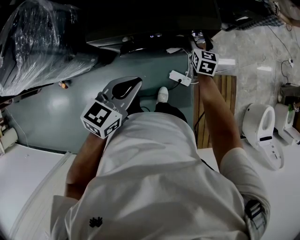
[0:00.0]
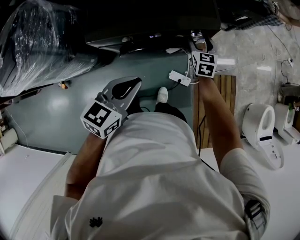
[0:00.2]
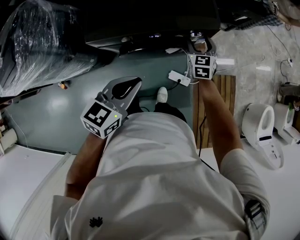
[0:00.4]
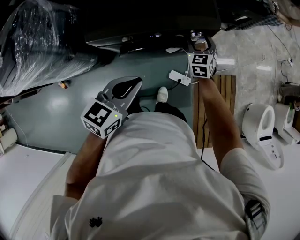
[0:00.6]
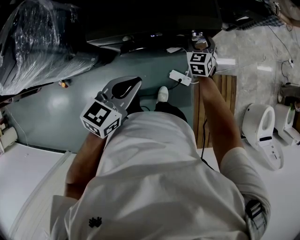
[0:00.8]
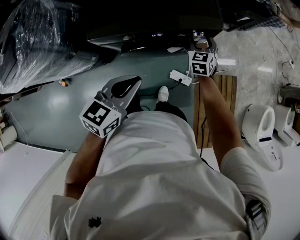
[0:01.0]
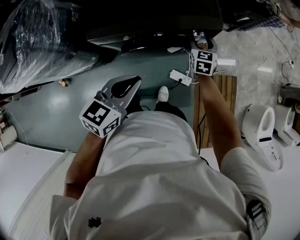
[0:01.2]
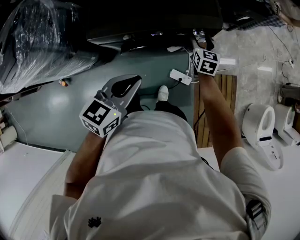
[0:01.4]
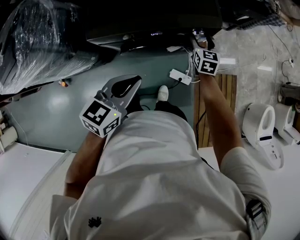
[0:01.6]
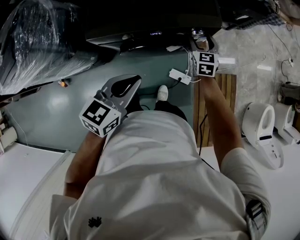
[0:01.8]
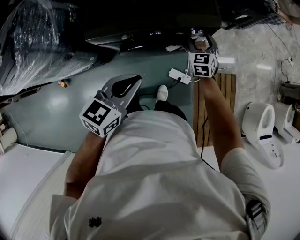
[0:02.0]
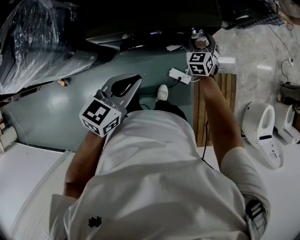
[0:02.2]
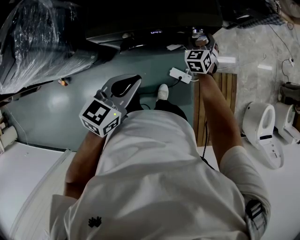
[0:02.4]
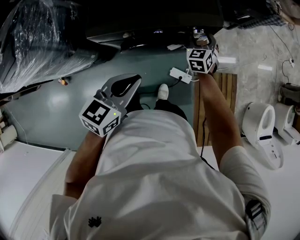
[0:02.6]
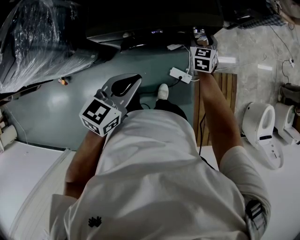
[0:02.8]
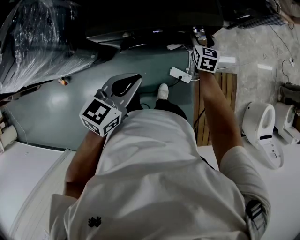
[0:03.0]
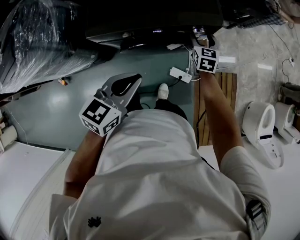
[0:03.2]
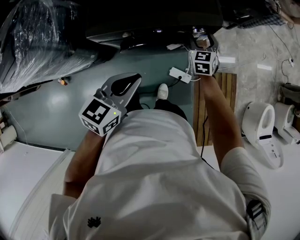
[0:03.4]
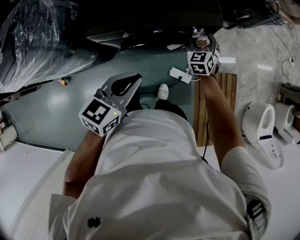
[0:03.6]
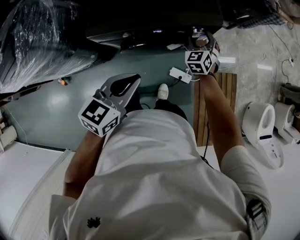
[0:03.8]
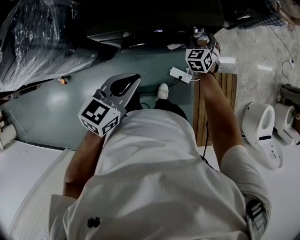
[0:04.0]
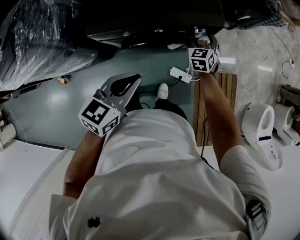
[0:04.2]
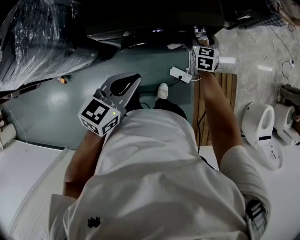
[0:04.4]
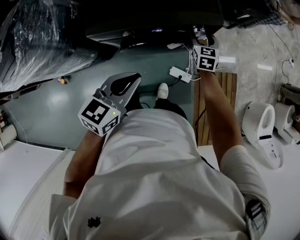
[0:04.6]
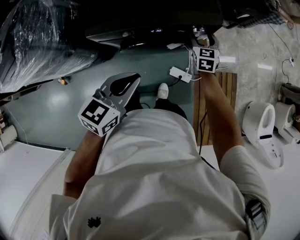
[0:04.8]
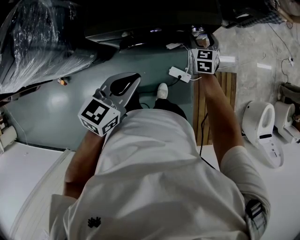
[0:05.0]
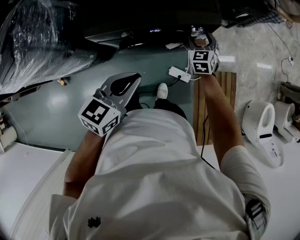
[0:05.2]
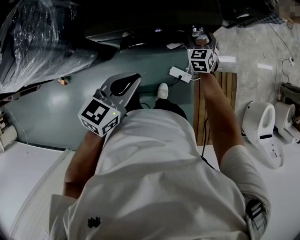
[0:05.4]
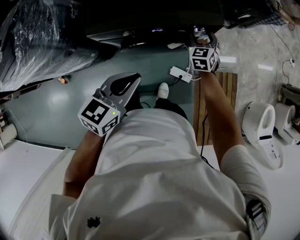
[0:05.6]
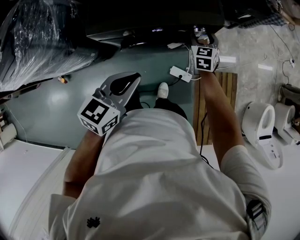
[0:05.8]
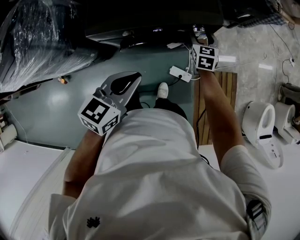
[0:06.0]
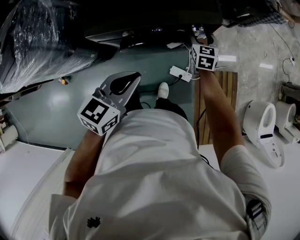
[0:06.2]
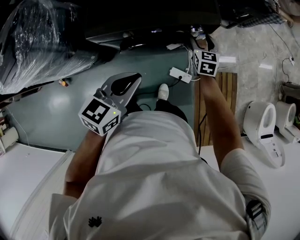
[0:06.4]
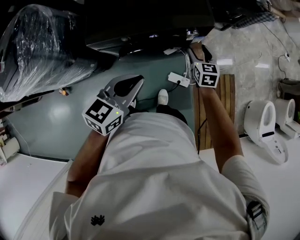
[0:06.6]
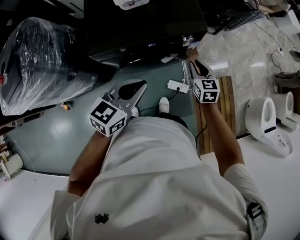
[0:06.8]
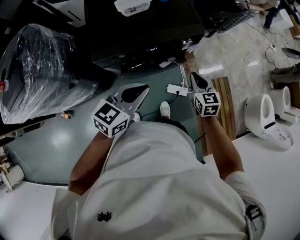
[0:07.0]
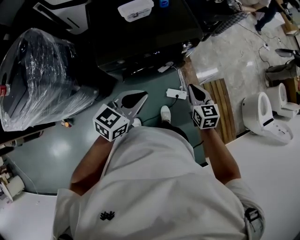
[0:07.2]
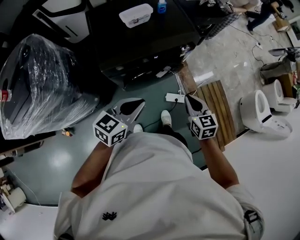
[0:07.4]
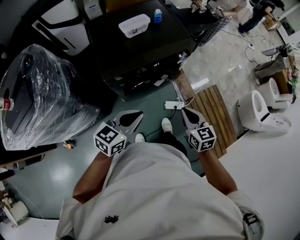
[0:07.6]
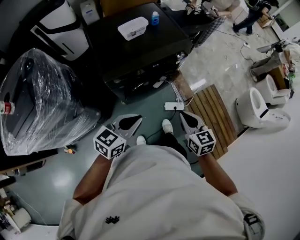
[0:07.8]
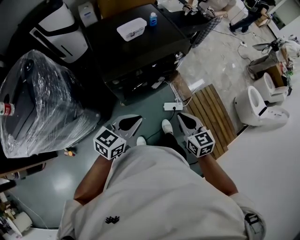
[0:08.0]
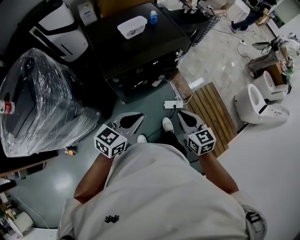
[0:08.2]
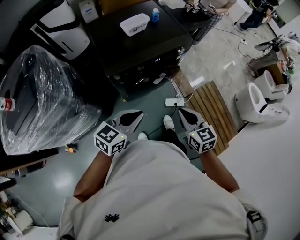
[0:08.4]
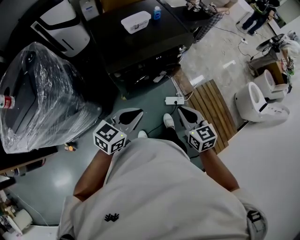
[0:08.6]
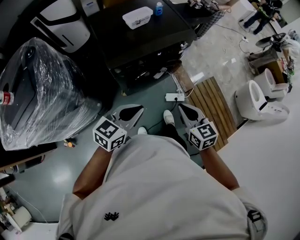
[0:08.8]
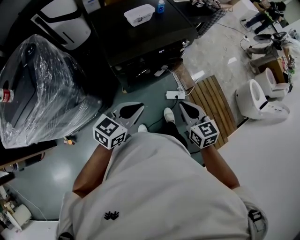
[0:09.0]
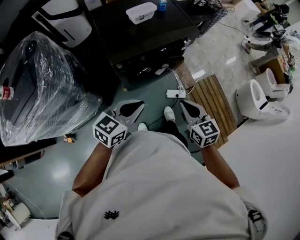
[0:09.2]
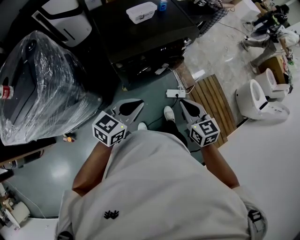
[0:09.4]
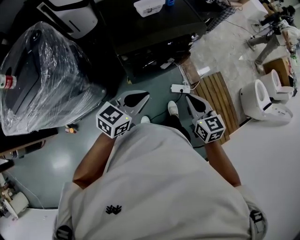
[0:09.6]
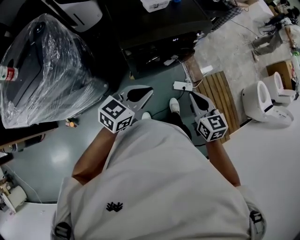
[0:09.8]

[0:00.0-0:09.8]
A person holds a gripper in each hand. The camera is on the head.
0:04.2 to 0:05.6: The grippers stay close to where they were, moving slightly.
0:05.6 to 0:07.0: The right gripper heads backward and upward, covering about 20 cm, swivels roughly 20 degrees, and closes up.
0:07.0 to 0:08.4: The right gripper heads backward, covering roughly 25 cm. Meanwhile the left gripper moves backward and to the left, about 15 cm.
0:08.4 to 0:09.8: There are only small adjustments of the grippers.

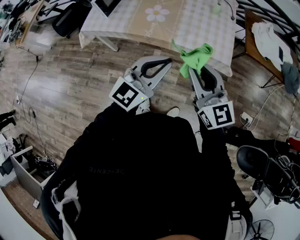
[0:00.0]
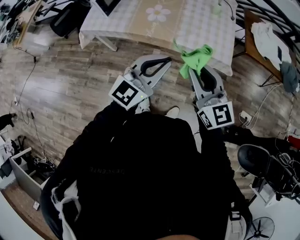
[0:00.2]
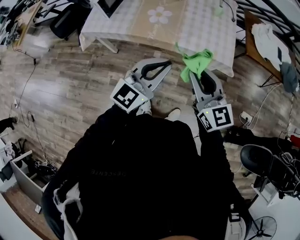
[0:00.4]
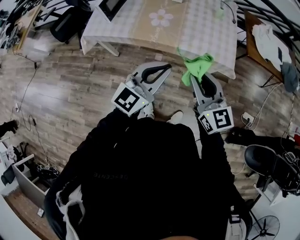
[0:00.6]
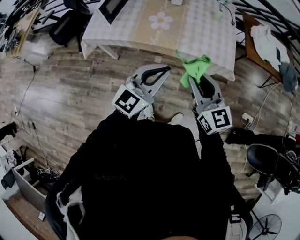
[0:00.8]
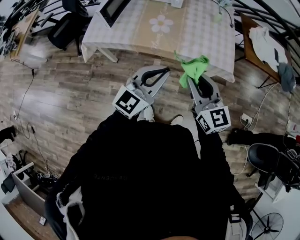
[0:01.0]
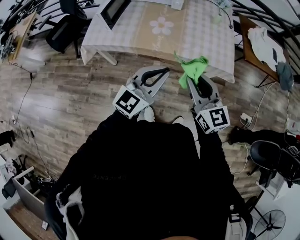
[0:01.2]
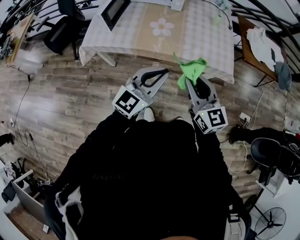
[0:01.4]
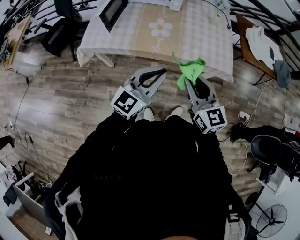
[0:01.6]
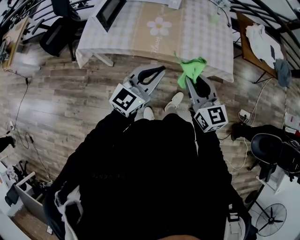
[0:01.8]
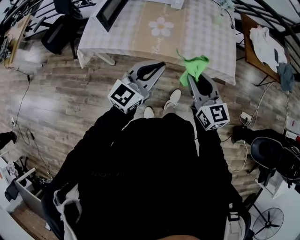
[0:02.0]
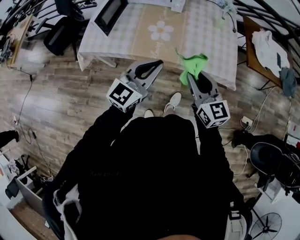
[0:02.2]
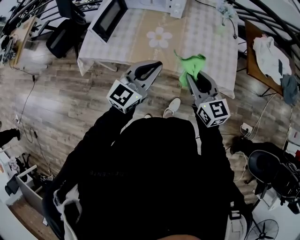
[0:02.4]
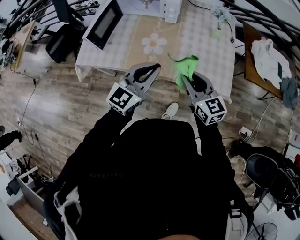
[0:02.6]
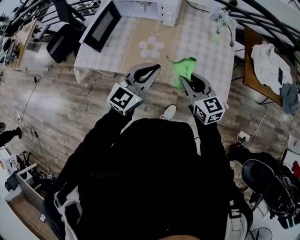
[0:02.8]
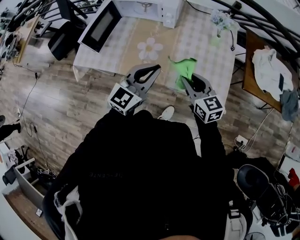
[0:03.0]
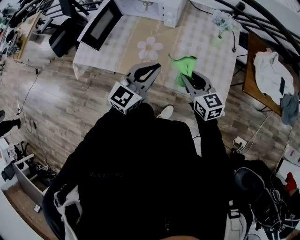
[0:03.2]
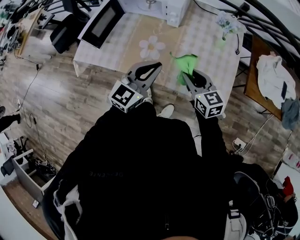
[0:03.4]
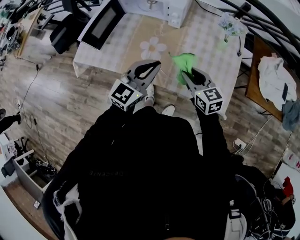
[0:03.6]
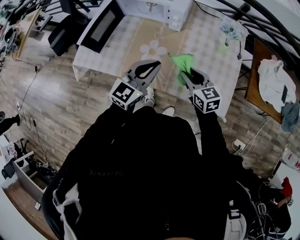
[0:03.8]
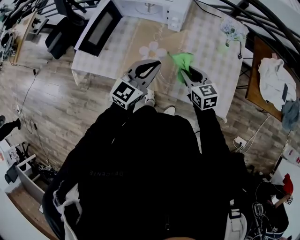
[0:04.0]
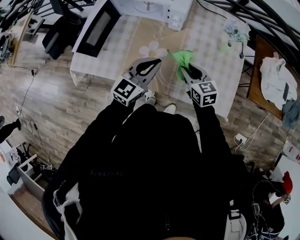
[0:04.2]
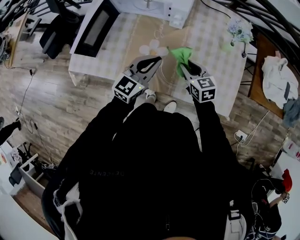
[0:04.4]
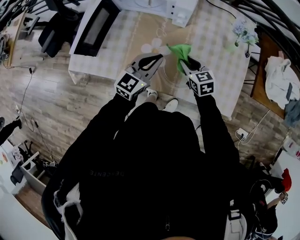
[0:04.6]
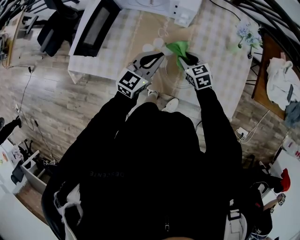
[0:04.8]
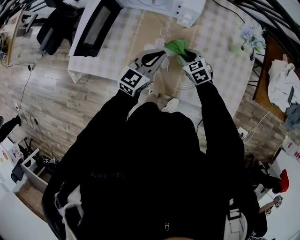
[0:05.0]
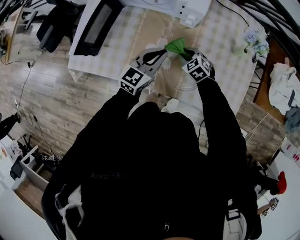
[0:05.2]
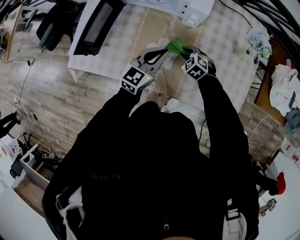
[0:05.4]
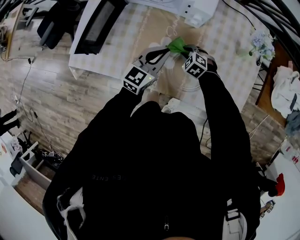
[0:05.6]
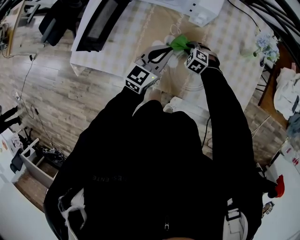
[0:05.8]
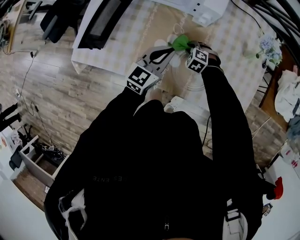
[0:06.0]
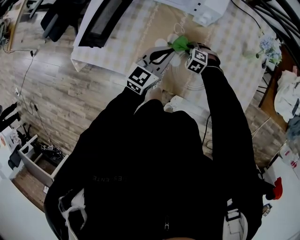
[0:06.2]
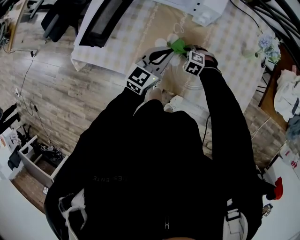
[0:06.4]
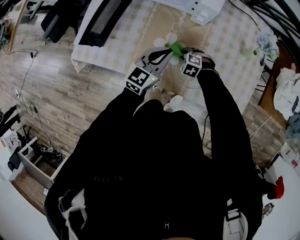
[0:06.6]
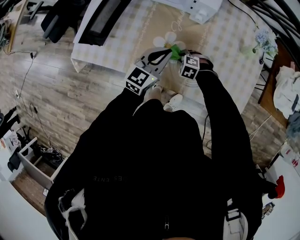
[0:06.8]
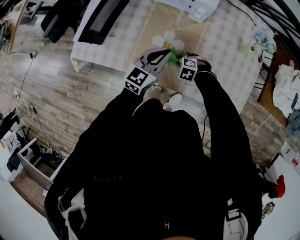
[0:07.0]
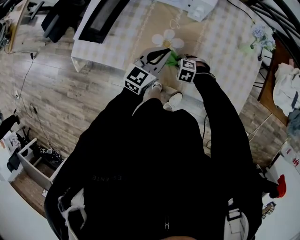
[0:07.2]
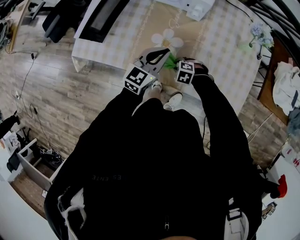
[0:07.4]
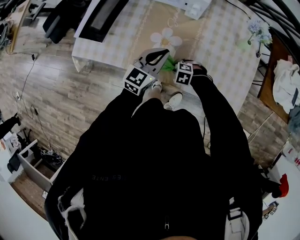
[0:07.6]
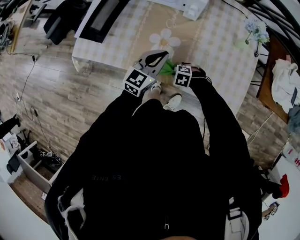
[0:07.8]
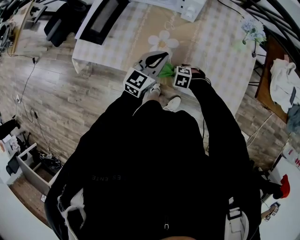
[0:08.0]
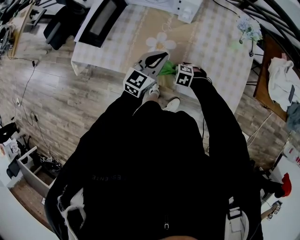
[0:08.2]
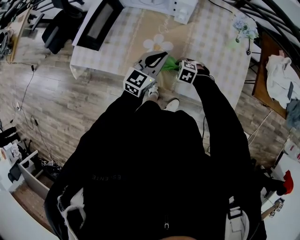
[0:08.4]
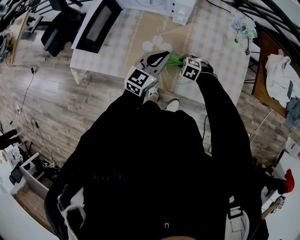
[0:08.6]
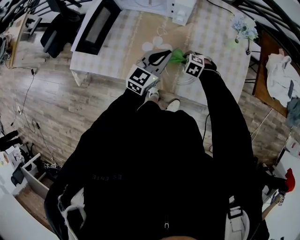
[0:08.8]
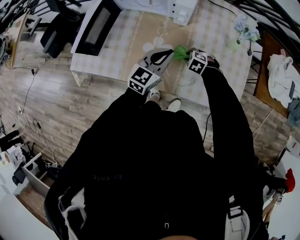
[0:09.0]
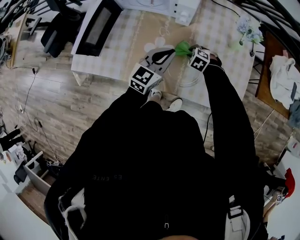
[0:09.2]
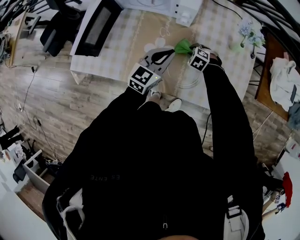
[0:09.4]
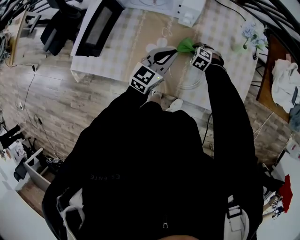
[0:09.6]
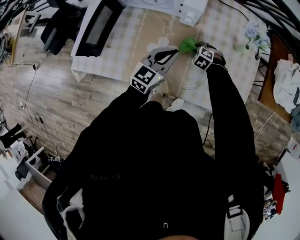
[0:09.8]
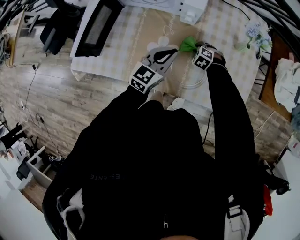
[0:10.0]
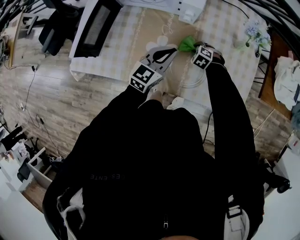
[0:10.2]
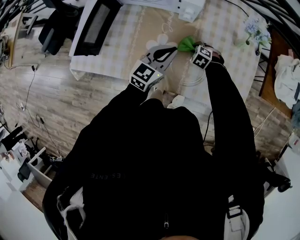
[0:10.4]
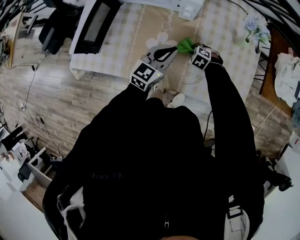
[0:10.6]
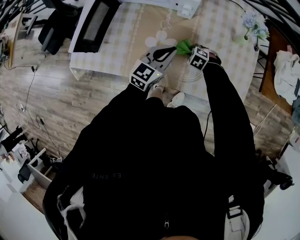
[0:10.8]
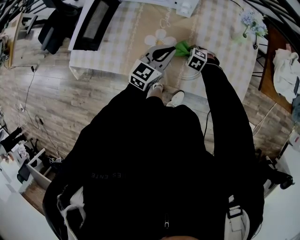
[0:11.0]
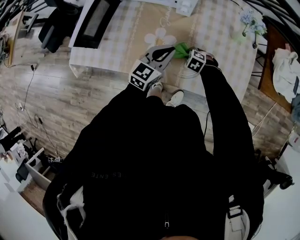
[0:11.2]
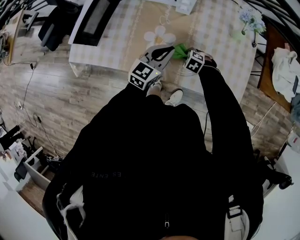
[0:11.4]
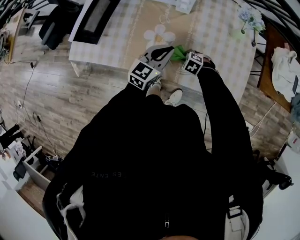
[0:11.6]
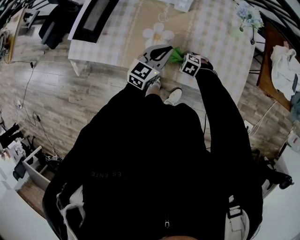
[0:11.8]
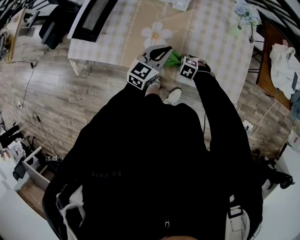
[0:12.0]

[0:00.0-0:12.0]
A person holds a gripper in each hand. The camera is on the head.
0:00.0 to 0:01.6: The right gripper is displaced to the left and downward by approximately 15 cm. Meanwhile the left gripper shifts roughly 15 cm to the left.
0:01.6 to 0:03.0: Both grippers move forward and to the right, roughly 25 cm.
0:03.0 to 0:04.4: Both grippers move forward and downward, some 20 cm.
0:04.4 to 0:06.0: The right gripper travels downward and forward by roughly 20 cm, and twists about 50 degrees counterclockwise, seen from behind. The left gripper heads downward and forward, covering some 10 cm.
0:06.0 to 0:07.6: The left gripper moves backward, about 5 cm, while the right gripper goes about 15 cm backward.
0:07.6 to 0:09.0: The right gripper moves some 15 cm. The left gripper changes place by about 5 cm.
0:09.0 to 0:10.4: The right gripper ends up approximately 5 cm from where it was.
0:10.4 to 0:12.0: The right gripper ends up roughly 15 cm from where it was; the left gripper moves some 10 cm.

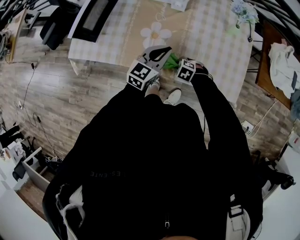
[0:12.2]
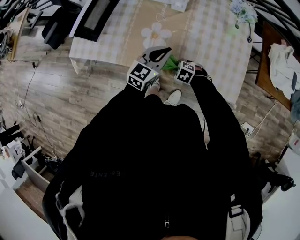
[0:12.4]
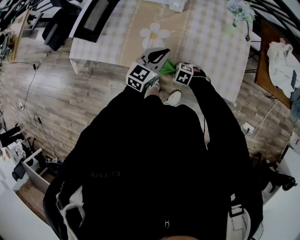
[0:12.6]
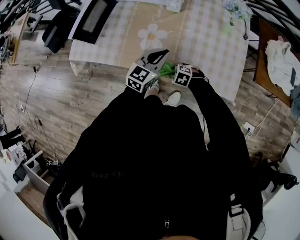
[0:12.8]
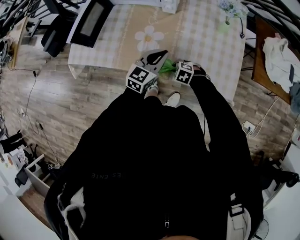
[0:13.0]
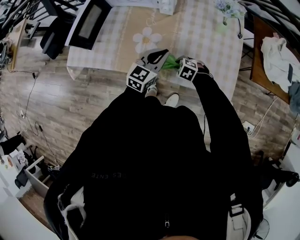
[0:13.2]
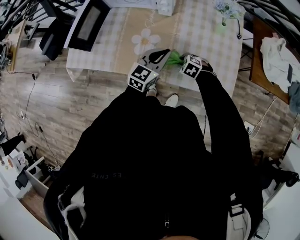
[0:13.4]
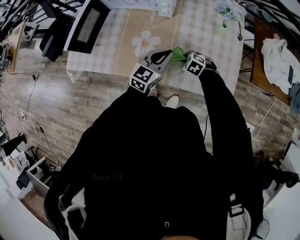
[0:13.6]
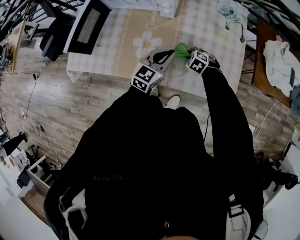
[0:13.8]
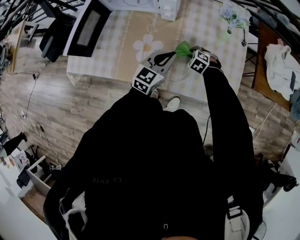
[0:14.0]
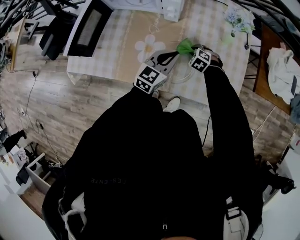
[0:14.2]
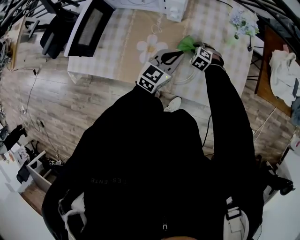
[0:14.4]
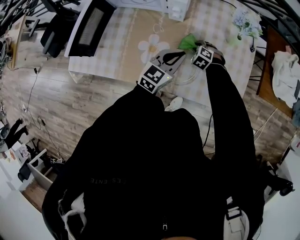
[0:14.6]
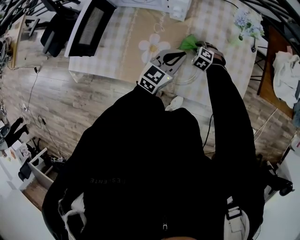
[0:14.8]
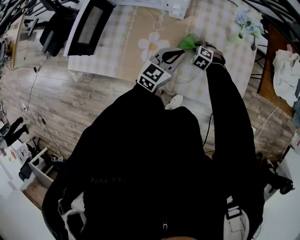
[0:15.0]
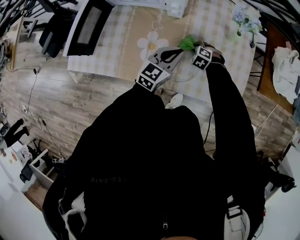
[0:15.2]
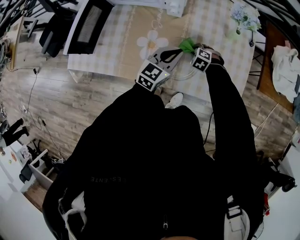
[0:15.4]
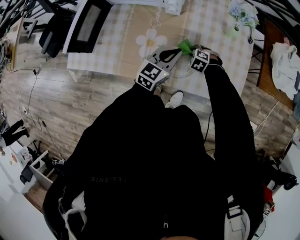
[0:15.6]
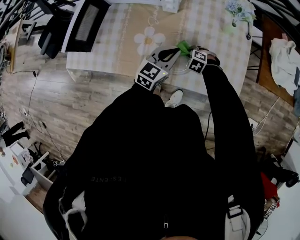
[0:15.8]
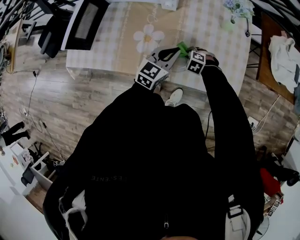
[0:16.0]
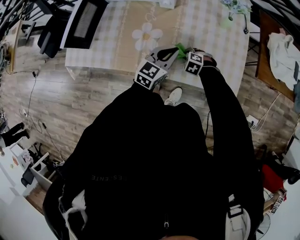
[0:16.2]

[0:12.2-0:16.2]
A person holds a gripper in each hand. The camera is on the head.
0:12.2 to 0:13.6: The right gripper moves approximately 10 cm; the left gripper moves approximately 5 cm.
0:13.6 to 0:14.8: The right gripper heads forward, covering roughly 15 cm. The left gripper moves forward, about 5 cm.
0:14.8 to 0:16.2: The left gripper travels backward by about 5 cm; the right gripper travels backward by approximately 15 cm.
